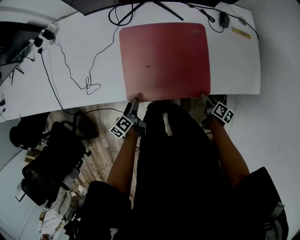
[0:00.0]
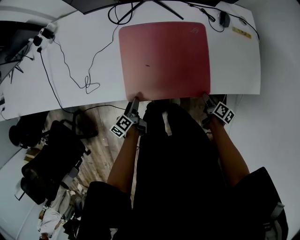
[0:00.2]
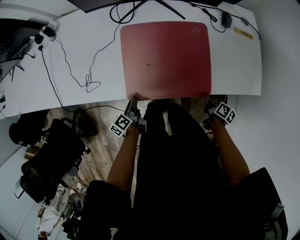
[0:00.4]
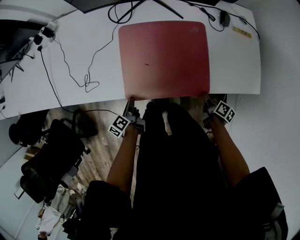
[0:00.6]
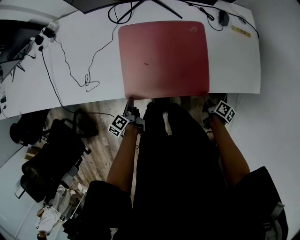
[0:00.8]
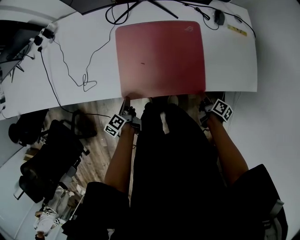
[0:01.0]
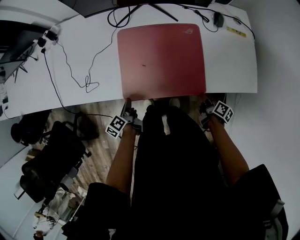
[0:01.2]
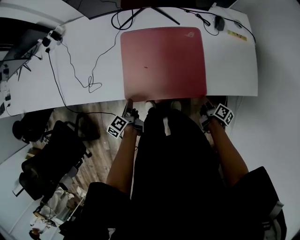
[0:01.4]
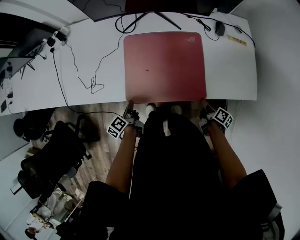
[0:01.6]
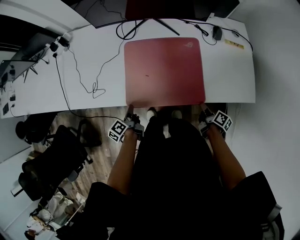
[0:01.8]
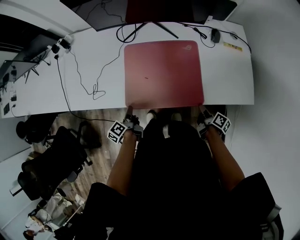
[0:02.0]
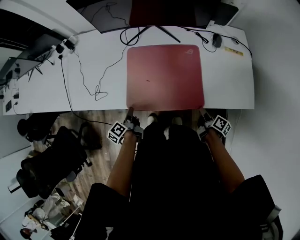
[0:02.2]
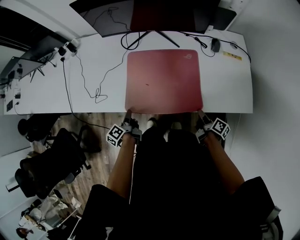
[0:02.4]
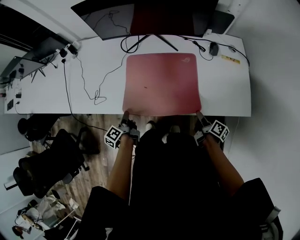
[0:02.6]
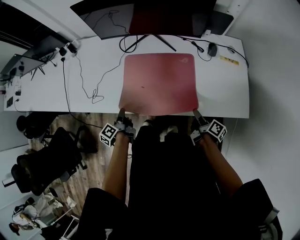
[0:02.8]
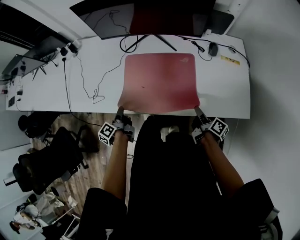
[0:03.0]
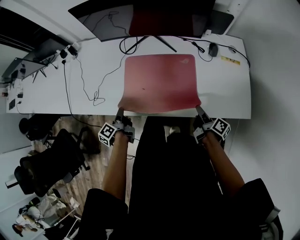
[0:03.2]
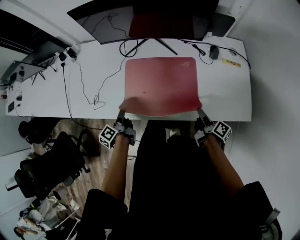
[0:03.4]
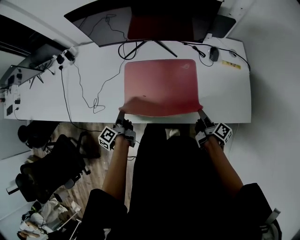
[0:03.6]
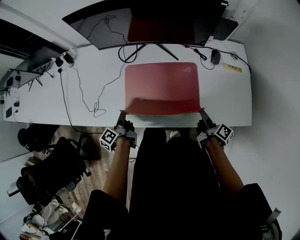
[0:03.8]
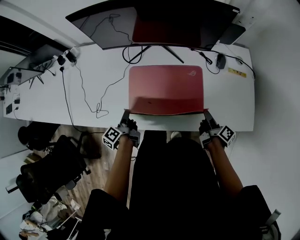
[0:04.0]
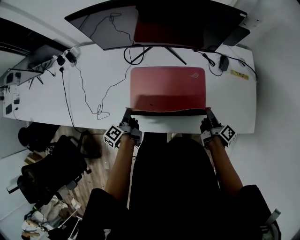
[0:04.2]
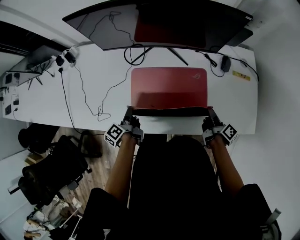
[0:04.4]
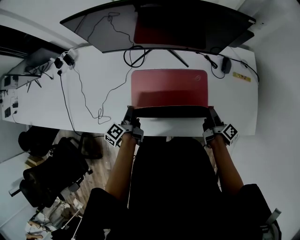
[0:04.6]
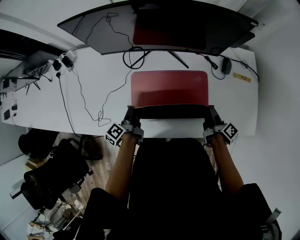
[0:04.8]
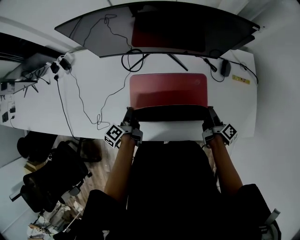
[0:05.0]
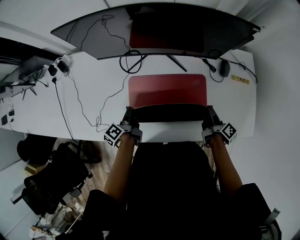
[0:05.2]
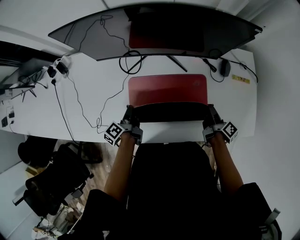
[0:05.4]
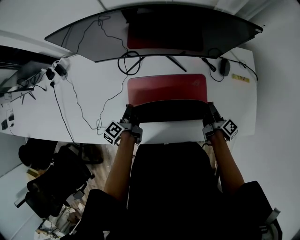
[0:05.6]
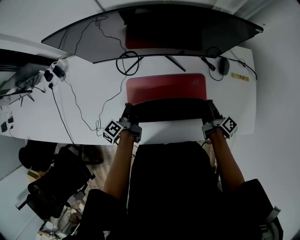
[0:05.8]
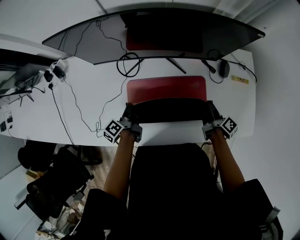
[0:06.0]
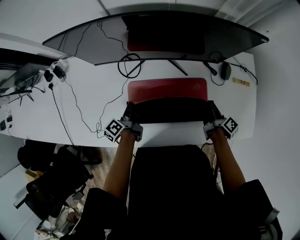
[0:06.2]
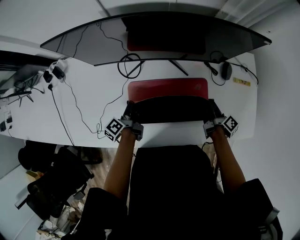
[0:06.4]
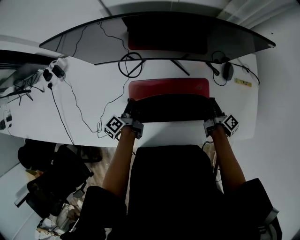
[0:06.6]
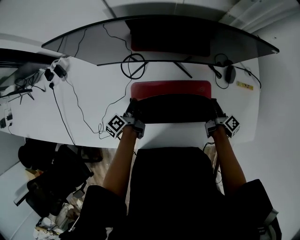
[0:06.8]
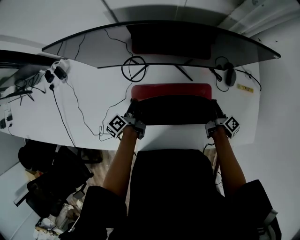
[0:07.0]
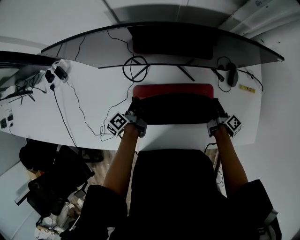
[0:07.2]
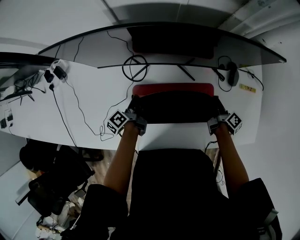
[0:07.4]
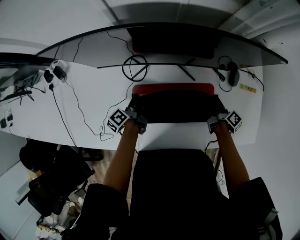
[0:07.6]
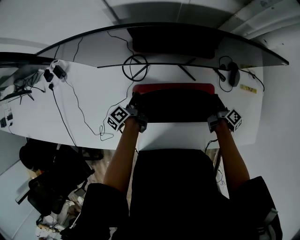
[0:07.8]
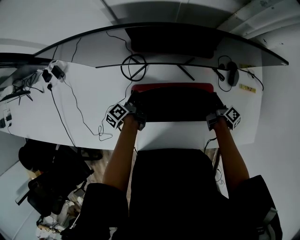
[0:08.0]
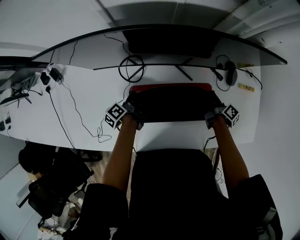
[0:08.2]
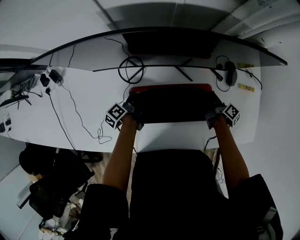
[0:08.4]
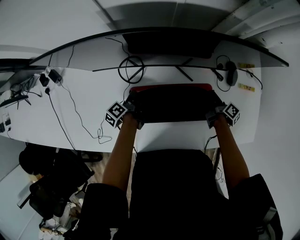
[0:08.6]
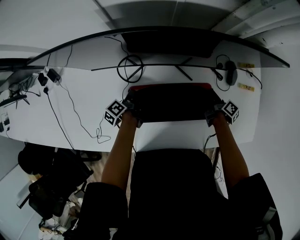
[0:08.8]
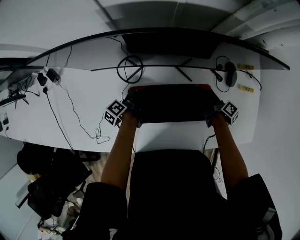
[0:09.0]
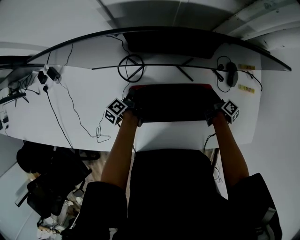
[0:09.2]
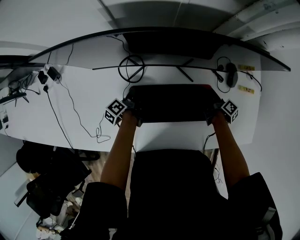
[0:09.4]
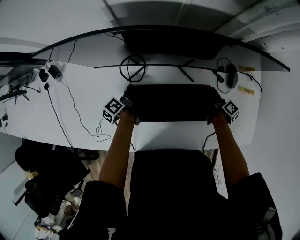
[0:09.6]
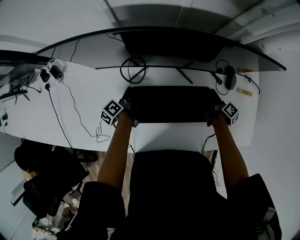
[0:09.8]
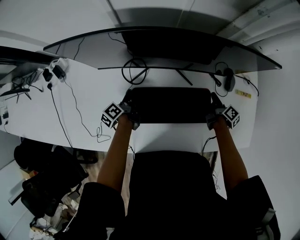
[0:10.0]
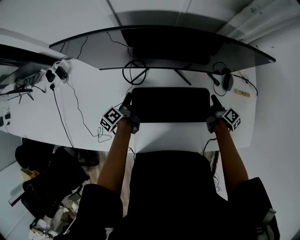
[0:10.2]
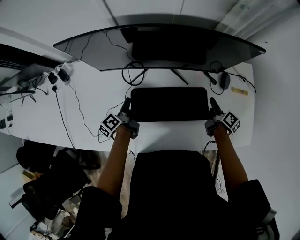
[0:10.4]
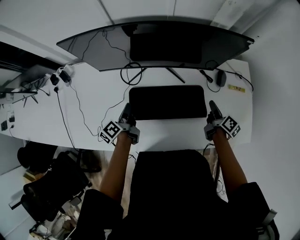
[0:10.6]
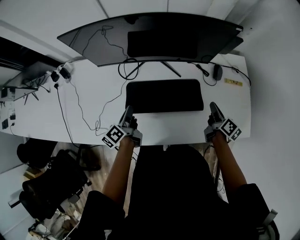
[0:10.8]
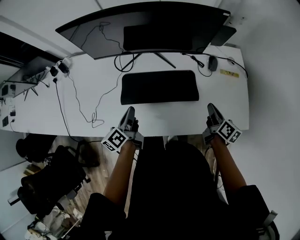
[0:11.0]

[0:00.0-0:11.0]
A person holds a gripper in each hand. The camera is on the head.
0:00.0 to 0:01.6: The right gripper closes up. Meanwhile the left gripper closes.
0:01.6 to 0:03.2: The left gripper goes some 10 cm upward. Meanwhile the right gripper travels upward and forward by about 10 cm.
0:03.2 to 0:04.8: The two grippers go roughly 15 cm forward.
0:04.8 to 0:06.2: Both grippers move forward, roughly 10 cm.
0:06.2 to 0:07.8: Both grippers travel together forward, approximately 5 cm.
0:07.8 to 0:09.4: The grippers stay close to where they were, moving slightly.
0:09.4 to 0:11.0: The left gripper travels backward, upward and to the right by about 30 cm, and rotates approximately 30 degrees. Meanwhile the right gripper moves backward and upward, about 25 cm, and turns by some 30 degrees.

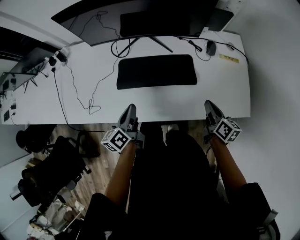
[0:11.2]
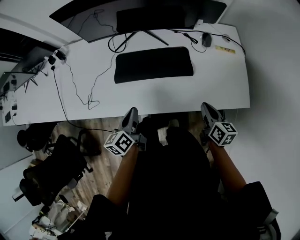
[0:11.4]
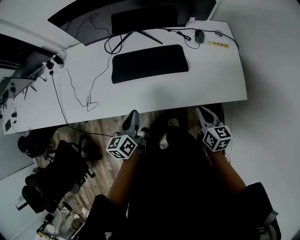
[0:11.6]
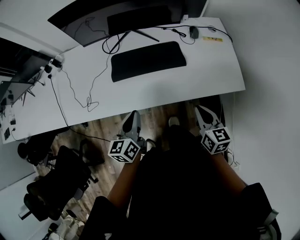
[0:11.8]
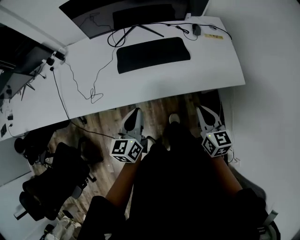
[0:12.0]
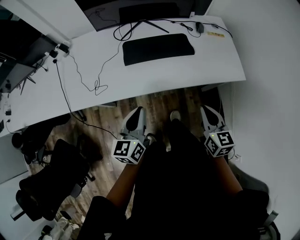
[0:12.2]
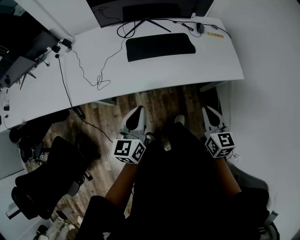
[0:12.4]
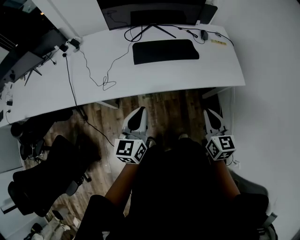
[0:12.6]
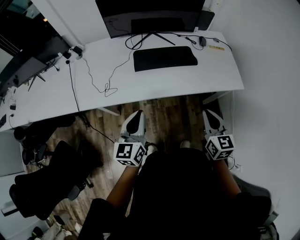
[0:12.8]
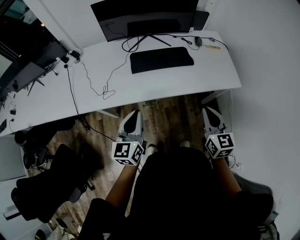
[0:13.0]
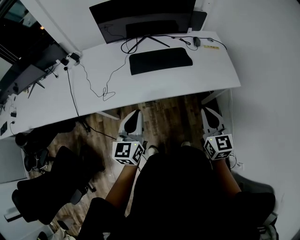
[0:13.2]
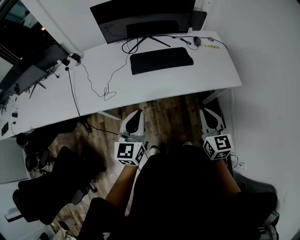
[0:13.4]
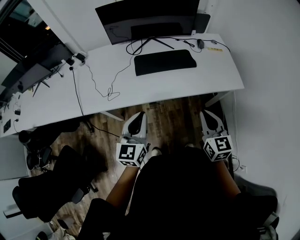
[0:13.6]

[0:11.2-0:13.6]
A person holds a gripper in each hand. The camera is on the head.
0:11.2 to 0:12.4: The right gripper moves backward and to the left, approximately 35 cm, and rotates about 30 degrees, while the left gripper heads backward, covering approximately 25 cm, and rotates some 30 degrees.
0:12.4 to 0:13.6: The right gripper moves about 5 cm. The left gripper changes place by approximately 5 cm.

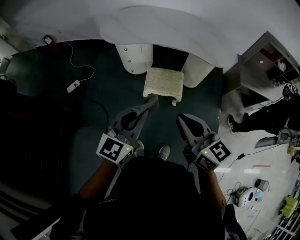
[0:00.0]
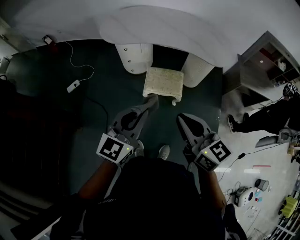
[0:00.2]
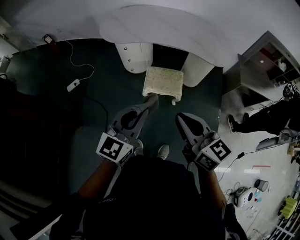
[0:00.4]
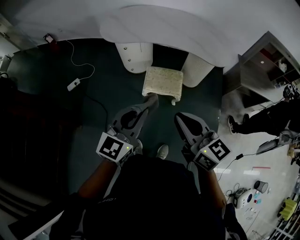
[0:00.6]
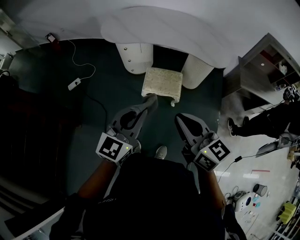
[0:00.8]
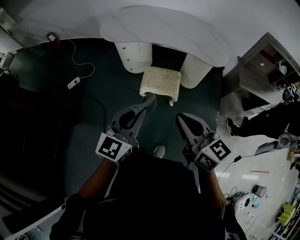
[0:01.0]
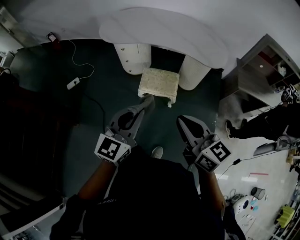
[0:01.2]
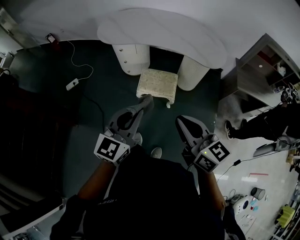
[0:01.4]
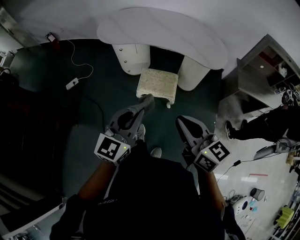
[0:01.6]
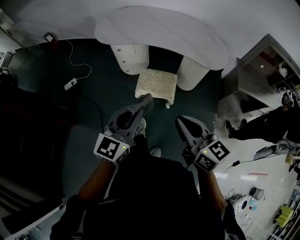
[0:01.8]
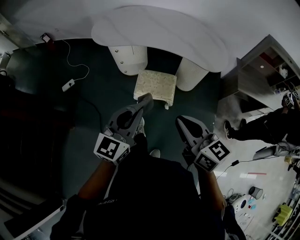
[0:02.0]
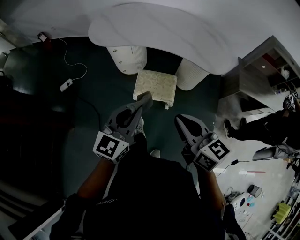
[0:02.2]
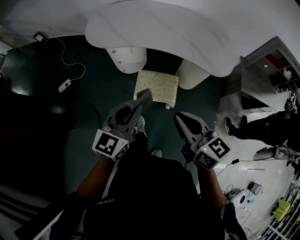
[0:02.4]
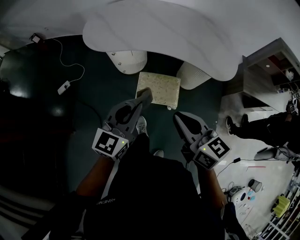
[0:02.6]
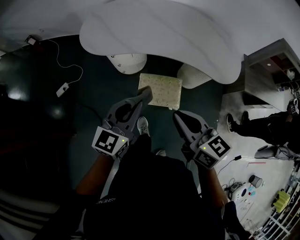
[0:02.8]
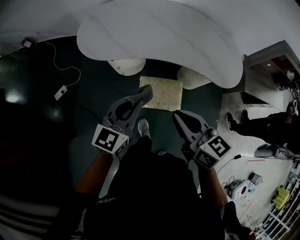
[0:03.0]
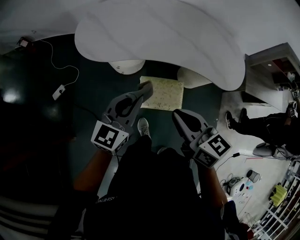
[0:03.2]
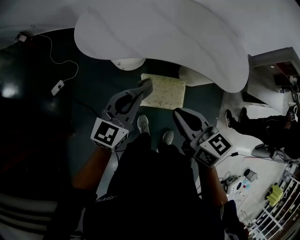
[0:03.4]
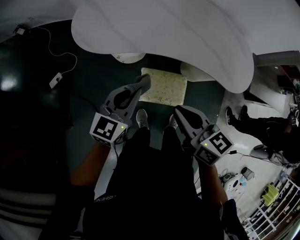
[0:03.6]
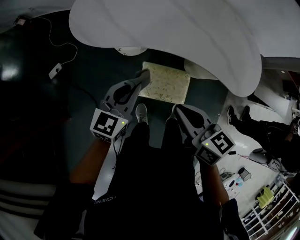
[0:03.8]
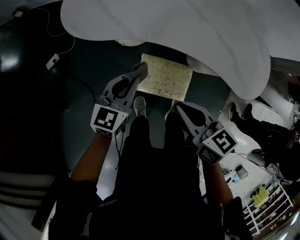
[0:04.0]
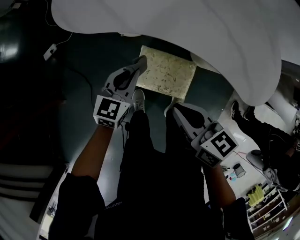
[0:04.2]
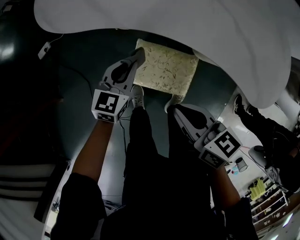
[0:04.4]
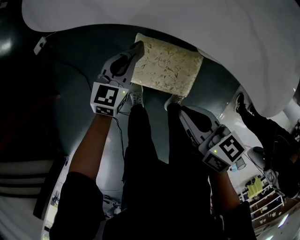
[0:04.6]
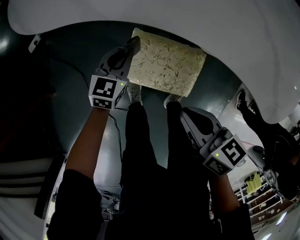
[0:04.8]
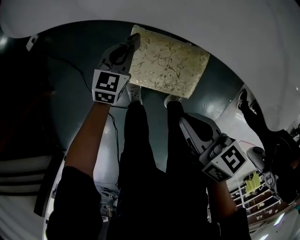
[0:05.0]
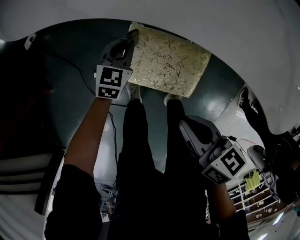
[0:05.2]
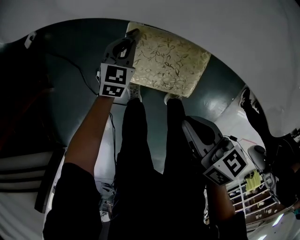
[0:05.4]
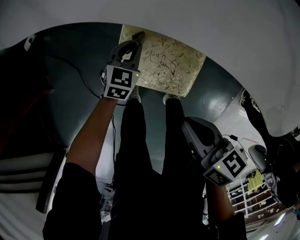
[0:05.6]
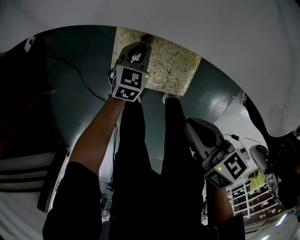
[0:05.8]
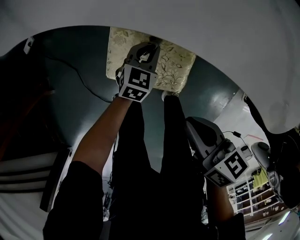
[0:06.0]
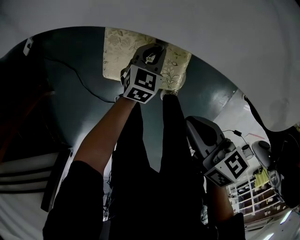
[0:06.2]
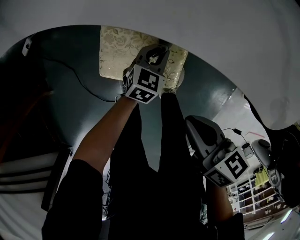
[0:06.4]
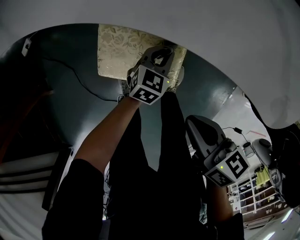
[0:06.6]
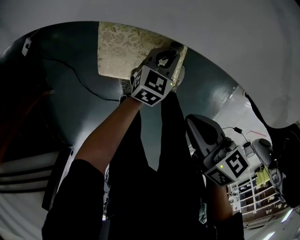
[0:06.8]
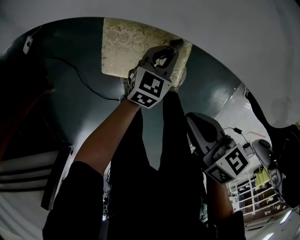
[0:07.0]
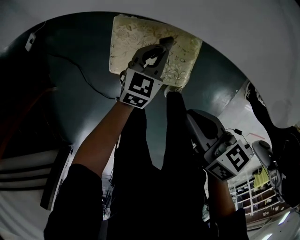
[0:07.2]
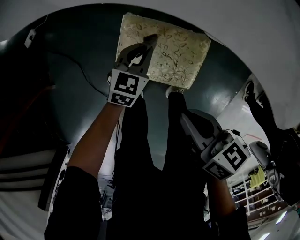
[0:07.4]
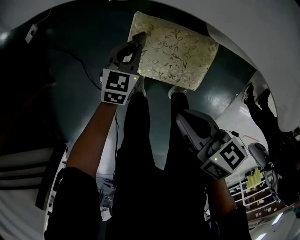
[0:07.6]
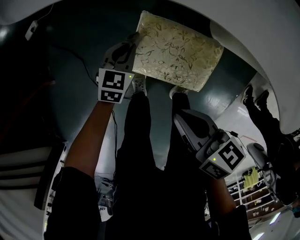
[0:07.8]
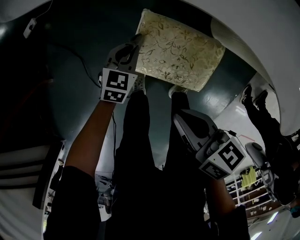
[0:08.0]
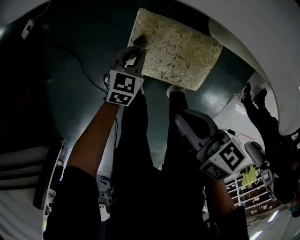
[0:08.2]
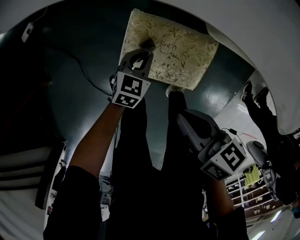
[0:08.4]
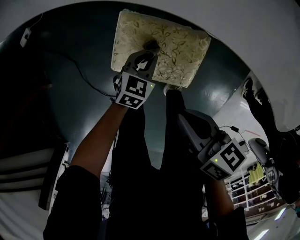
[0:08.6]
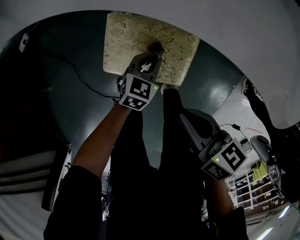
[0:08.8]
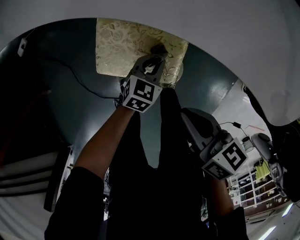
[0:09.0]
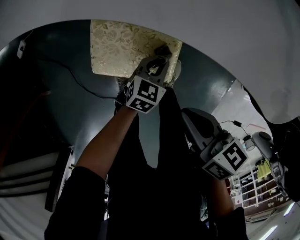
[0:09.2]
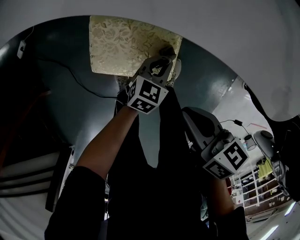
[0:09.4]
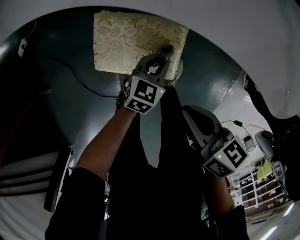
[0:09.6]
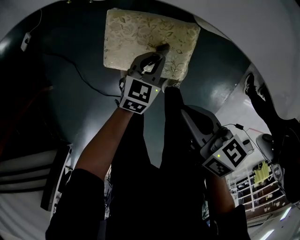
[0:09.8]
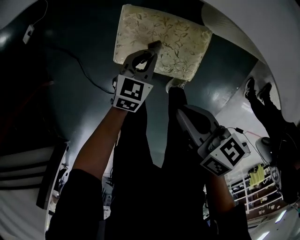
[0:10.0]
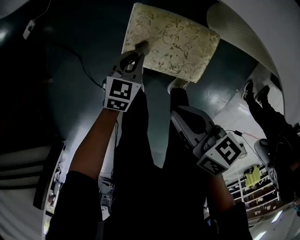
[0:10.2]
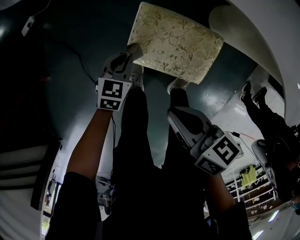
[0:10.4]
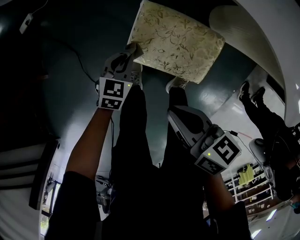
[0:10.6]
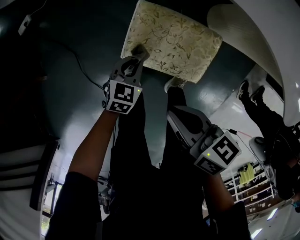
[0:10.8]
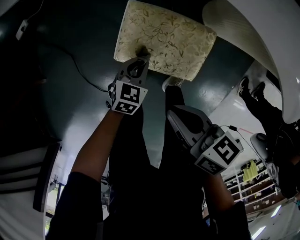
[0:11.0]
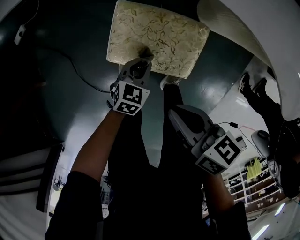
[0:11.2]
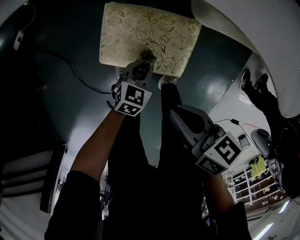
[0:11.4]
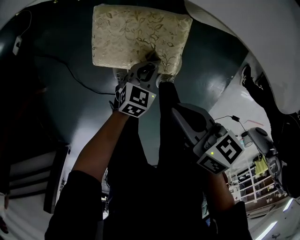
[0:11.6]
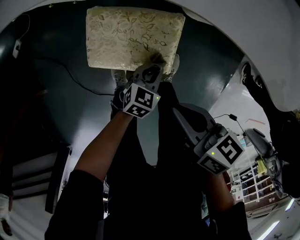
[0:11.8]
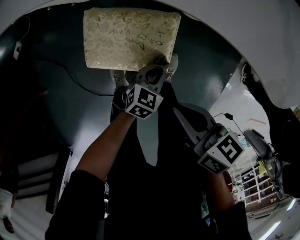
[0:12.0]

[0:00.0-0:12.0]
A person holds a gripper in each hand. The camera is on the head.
0:00.0 to 0:01.6: Both grippers travel together to the right, roughly 10 cm.
0:01.6 to 0:03.0: The grippers both shift forward by some 30 cm.
0:03.0 to 0:04.4: The grippers both shift downward and forward by roughly 30 cm. The left gripper swivels about 30 degrees. Meanwhile the right gripper changes its angle by some 30 degrees.
0:04.4 to 0:06.0: The right gripper travels downward, to the right and backward by approximately 20 cm; the left gripper travels downward and to the right by roughly 30 cm.
0:06.0 to 0:07.6: Both grippers travel together to the left, about 15 cm.
0:07.6 to 0:09.0: The right gripper travels to the right by approximately 10 cm, while the left gripper is displaced to the right and backward by about 20 cm.
0:09.0 to 0:10.4: The right gripper shifts about 15 cm to the left. The left gripper goes about 25 cm to the left.
0:10.4 to 0:12.0: The left gripper goes approximately 30 cm to the right, and rotates roughly 20 degrees, while the right gripper goes some 15 cm to the right.
